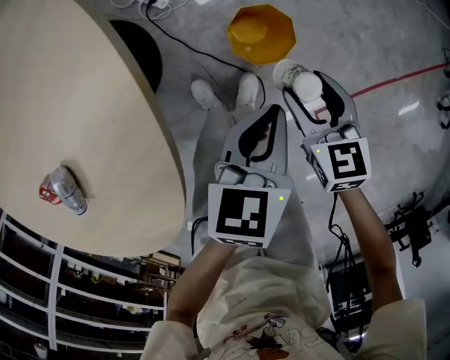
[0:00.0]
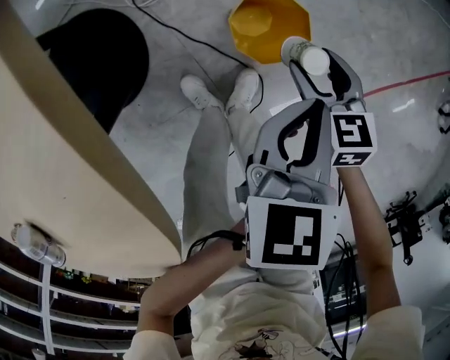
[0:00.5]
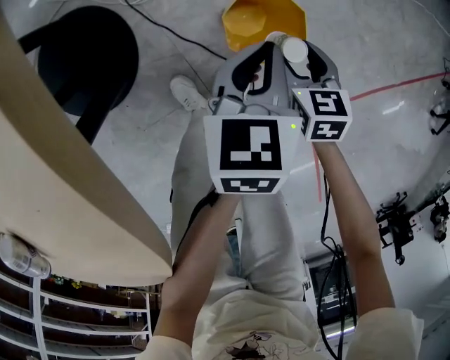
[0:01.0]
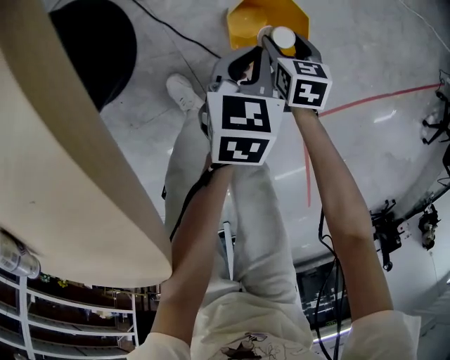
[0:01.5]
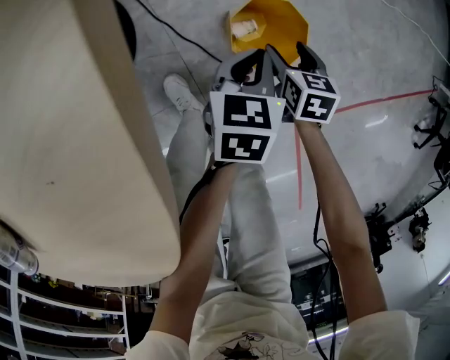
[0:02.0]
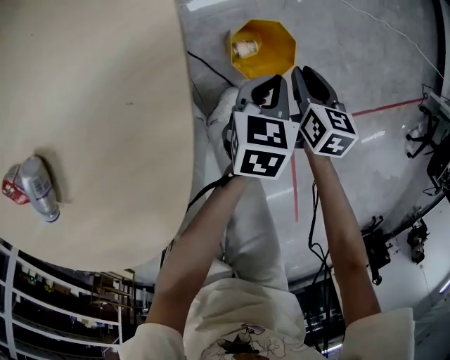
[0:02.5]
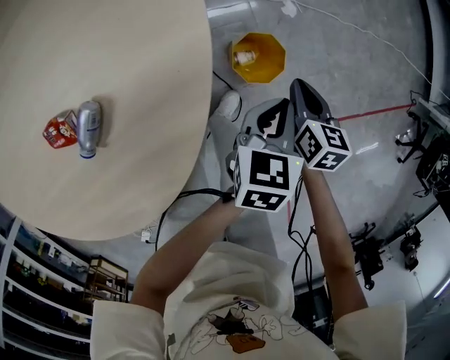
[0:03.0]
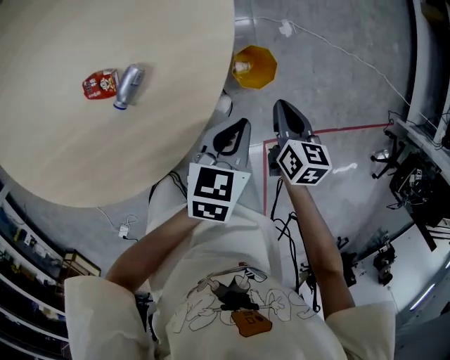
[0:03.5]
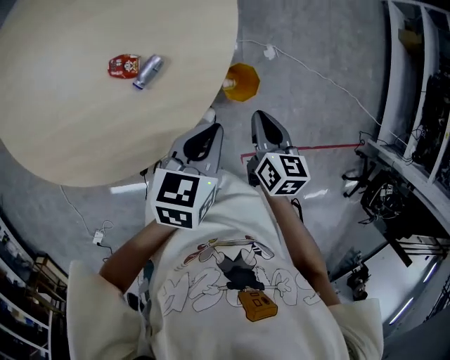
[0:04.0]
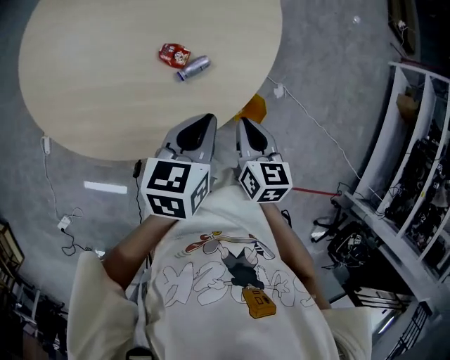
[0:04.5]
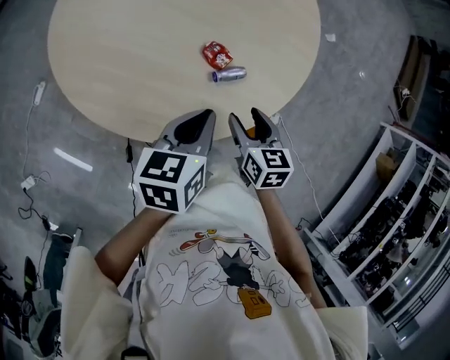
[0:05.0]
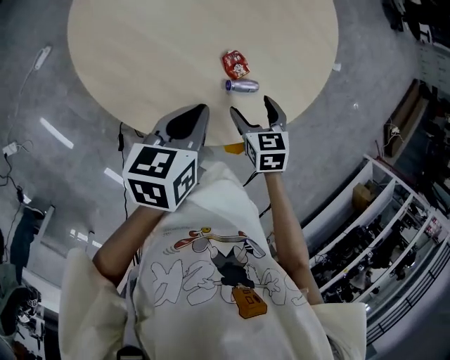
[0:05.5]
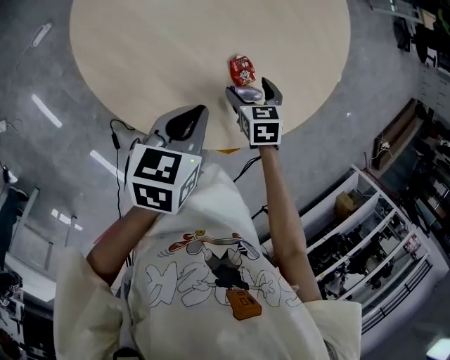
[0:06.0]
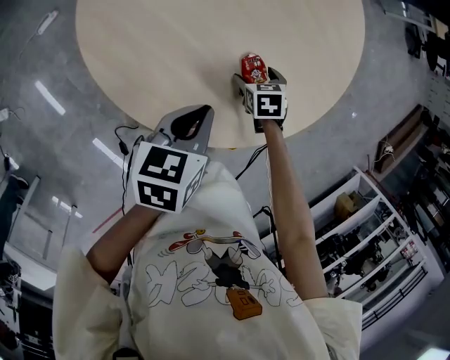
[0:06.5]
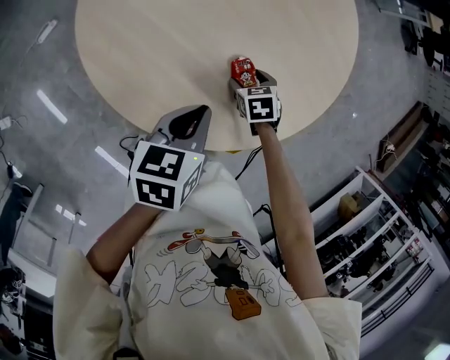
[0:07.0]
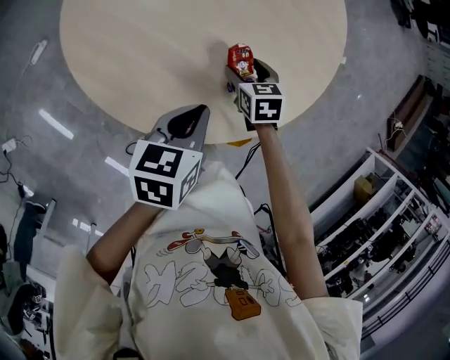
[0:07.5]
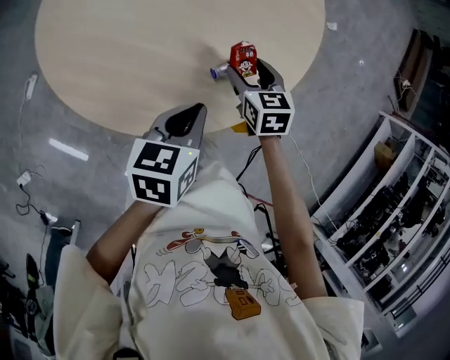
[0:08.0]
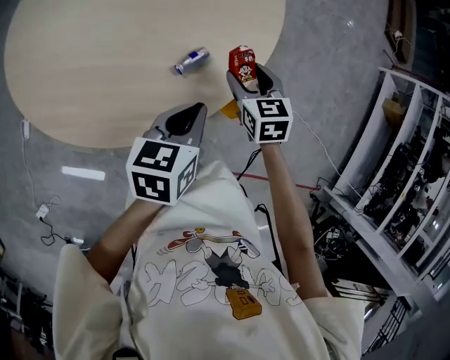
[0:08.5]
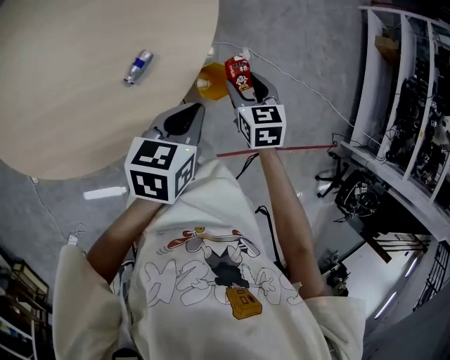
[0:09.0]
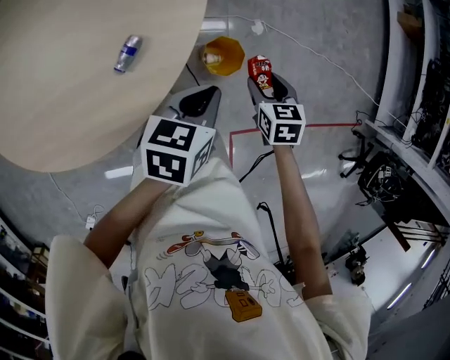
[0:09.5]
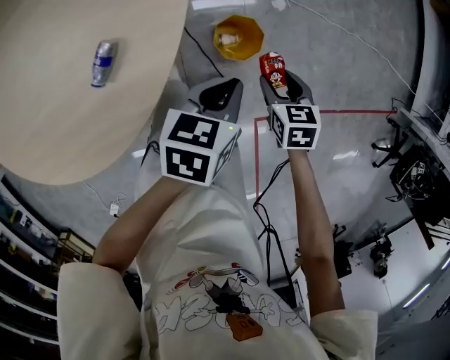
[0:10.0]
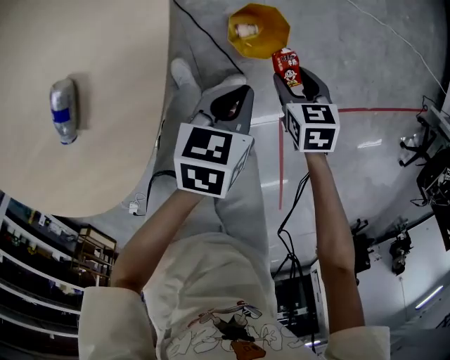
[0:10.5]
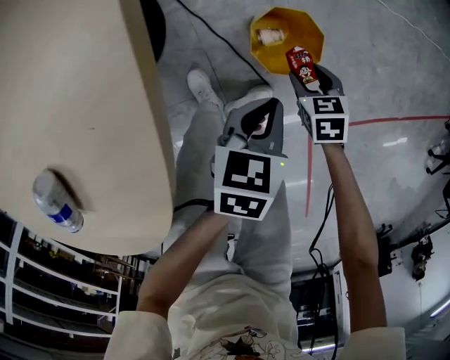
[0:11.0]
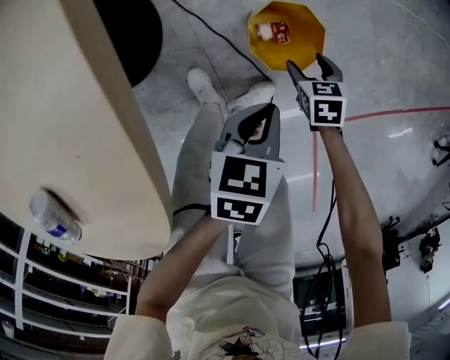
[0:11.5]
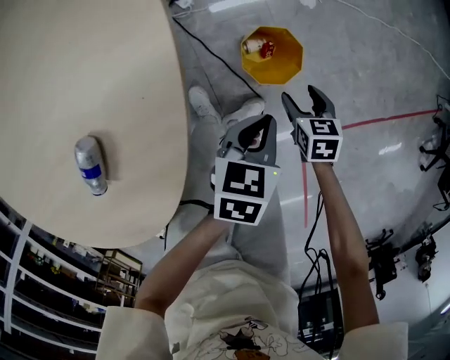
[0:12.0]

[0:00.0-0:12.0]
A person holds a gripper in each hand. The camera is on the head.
0:00.0 to 0:02.0: Both grippers move downward, some 25 cm.
0:02.0 to 0:04.0: Both grippers travel together upward, approximately 50 cm. The right gripper rotates approximately 20 degrees, and closes.
0:04.0 to 0:06.0: The right gripper moves about 35 cm, twists roughly 70 degrees counterclockwise, seen from behind, and opens its fingers. The left gripper shifts by some 25 cm, and changes its angle by approximately 50 degrees.
0:06.0 to 0:08.0: The left gripper moves to the right, approximately 5 cm, and changes its angle by roughly 20 degrees; the right gripper changes place by some 5 cm, and changes its angle by some 20 degrees.
0:08.0 to 0:10.0: The left gripper moves about 35 cm, and swivels about 50 degrees, while the right gripper moves approximately 50 cm, and rotates some 40 degrees.
0:10.0 to 0:12.0: The two grippers go approximately 20 cm downward.

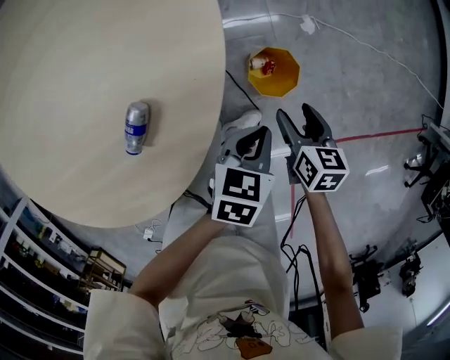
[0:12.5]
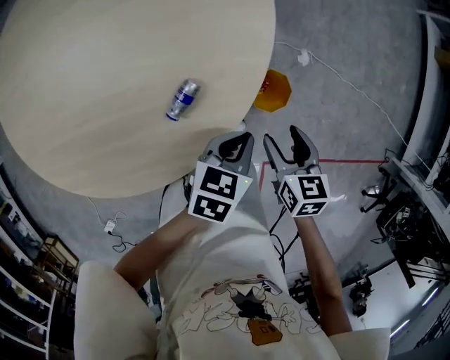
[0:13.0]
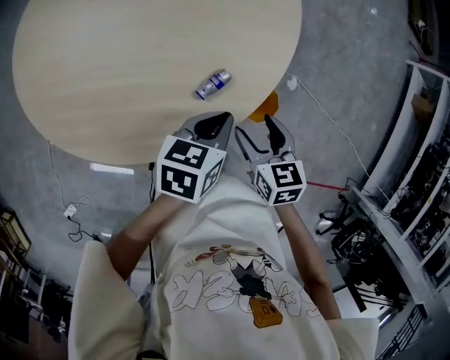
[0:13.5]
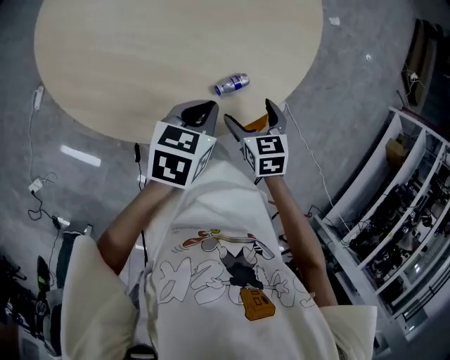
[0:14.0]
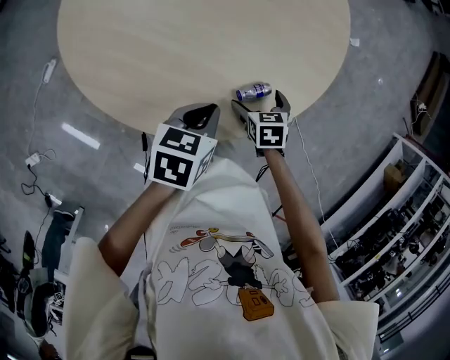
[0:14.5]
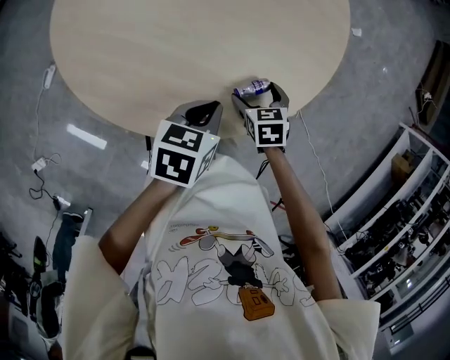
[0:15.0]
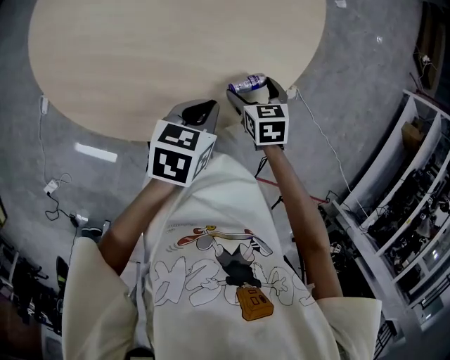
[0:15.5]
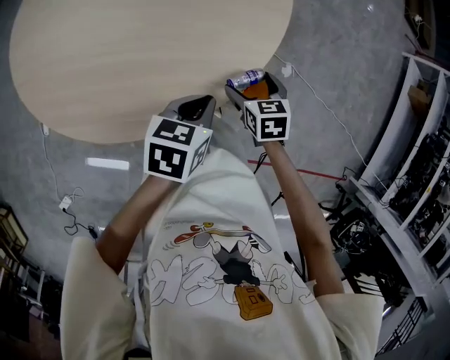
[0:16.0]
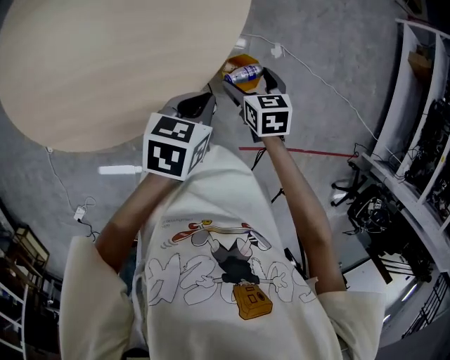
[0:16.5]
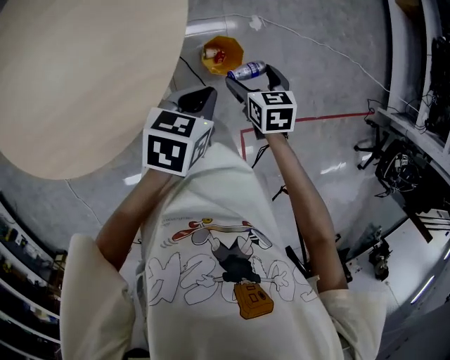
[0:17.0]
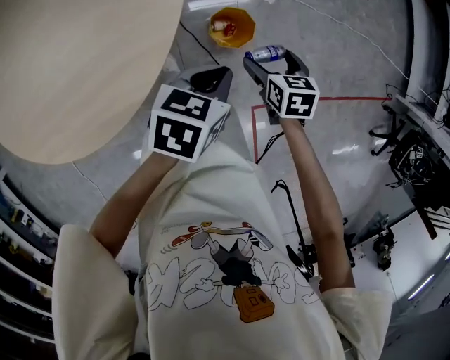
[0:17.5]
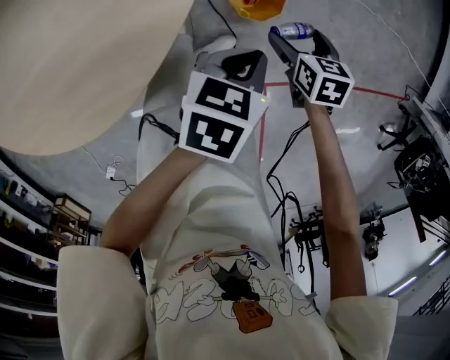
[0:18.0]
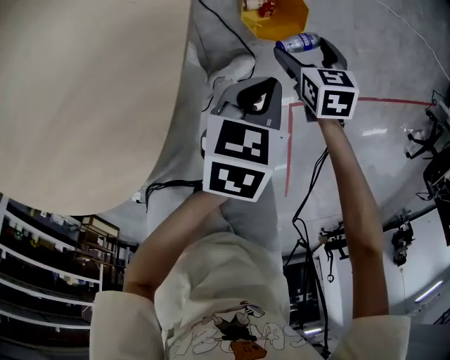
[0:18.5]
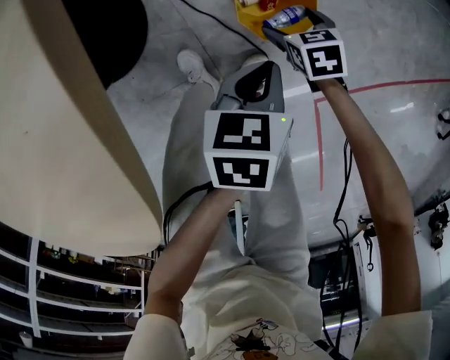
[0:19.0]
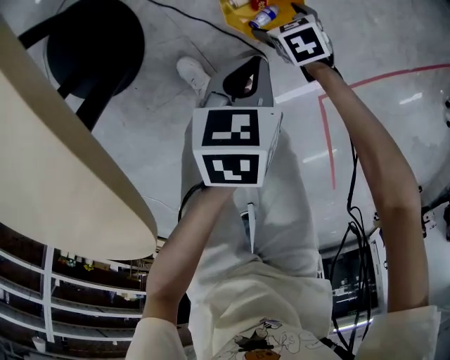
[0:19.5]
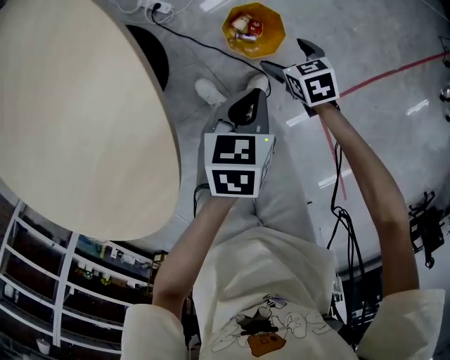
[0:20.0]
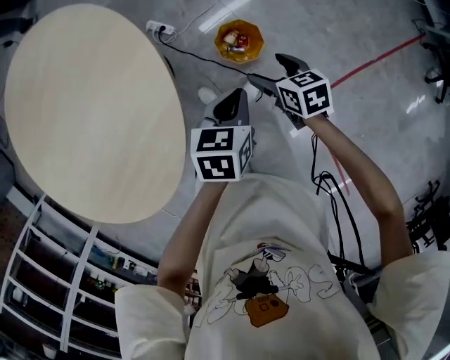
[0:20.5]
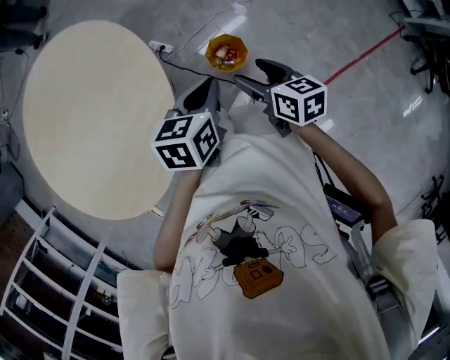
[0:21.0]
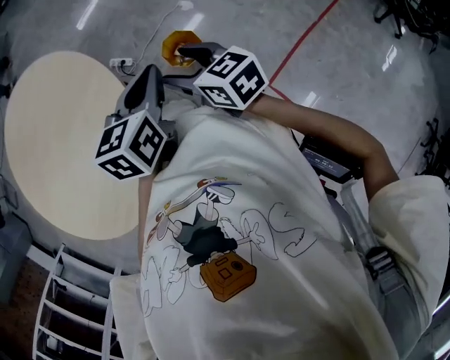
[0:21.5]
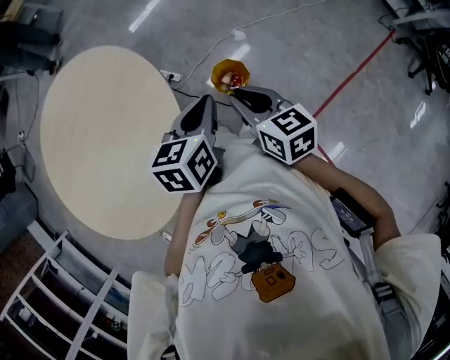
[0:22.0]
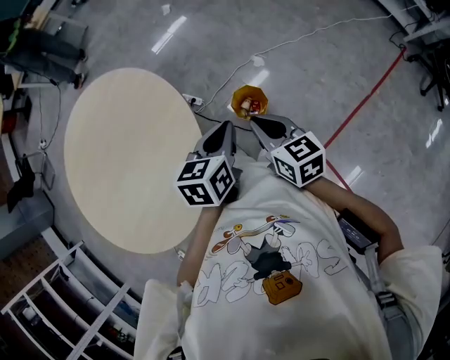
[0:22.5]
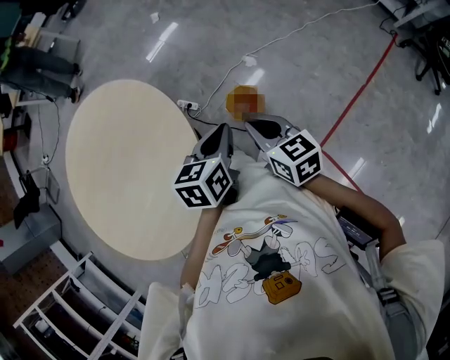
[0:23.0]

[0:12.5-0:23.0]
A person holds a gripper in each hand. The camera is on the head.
0:12.5 to 0:14.5: The right gripper moves roughly 35 cm, rotates around the line of its fingers by approximately 60 degrees, counterclockwise from behind, and opens up. Meanwhile the left gripper moves some 40 cm, and swivels roughly 50 degrees.
0:14.5 to 0:16.5: The right gripper changes place by approximately 20 cm, and turns by approximately 30 degrees; the left gripper moves roughly 20 cm, and turns by approximately 30 degrees.
0:16.5 to 0:19.0: The right gripper heads downward, covering approximately 50 cm, and turns by roughly 20 degrees; the left gripper moves downward and to the right, roughly 40 cm.
0:19.0 to 0:21.0: Both grippers travel together upward, roughly 50 cm. The left gripper rotates approximately 20 degrees, while the right gripper points its fingers approximately 30 degrees further upward.
0:21.0 to 0:23.0: The right gripper heads upward, covering about 5 cm, and closes.

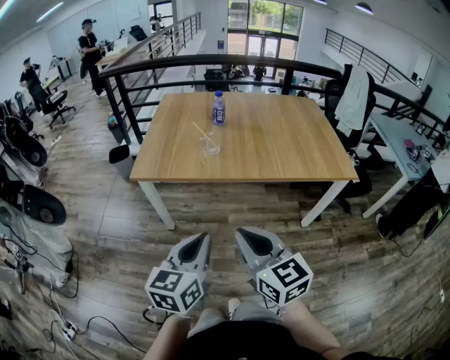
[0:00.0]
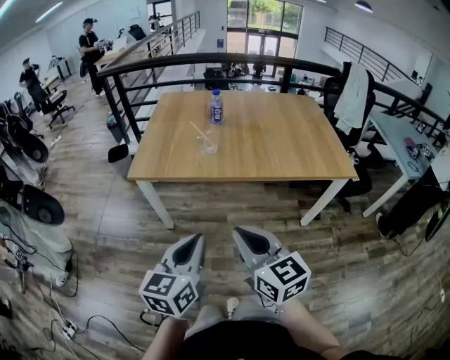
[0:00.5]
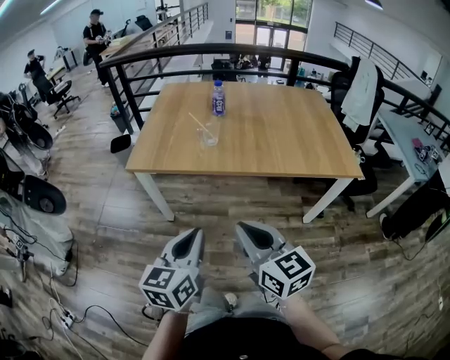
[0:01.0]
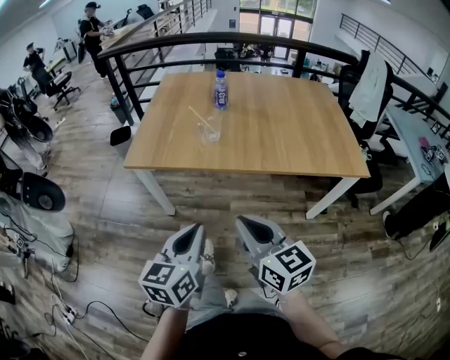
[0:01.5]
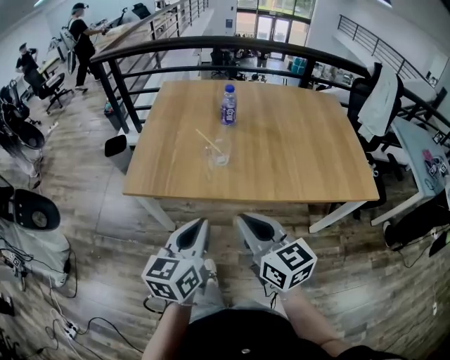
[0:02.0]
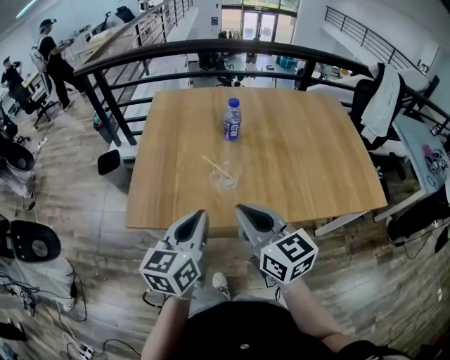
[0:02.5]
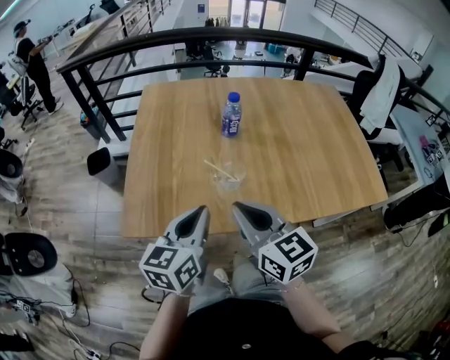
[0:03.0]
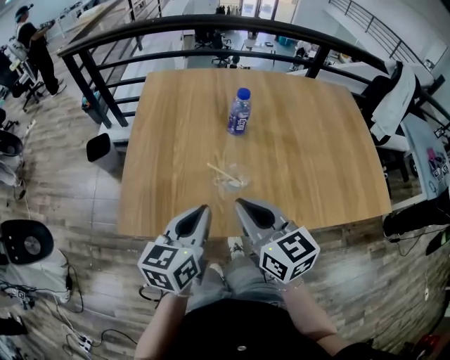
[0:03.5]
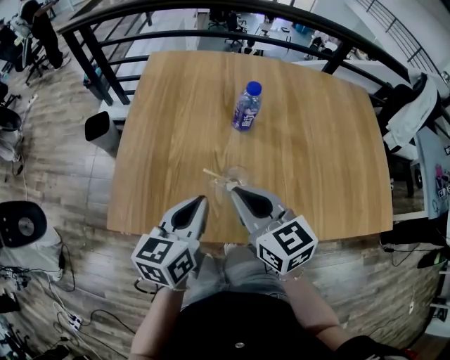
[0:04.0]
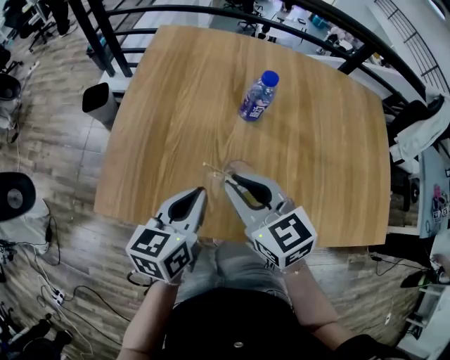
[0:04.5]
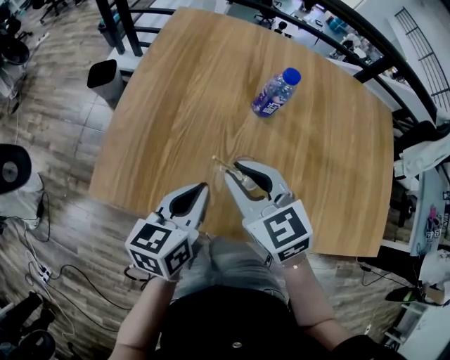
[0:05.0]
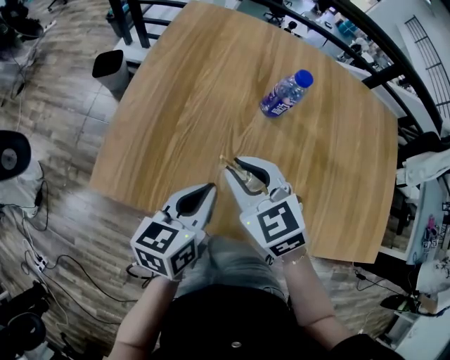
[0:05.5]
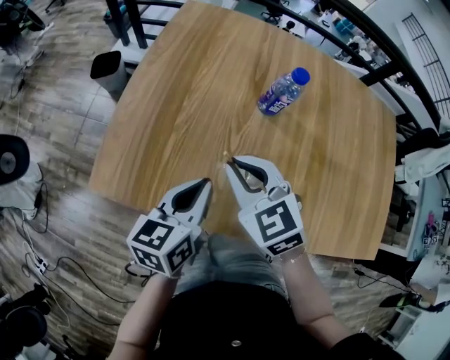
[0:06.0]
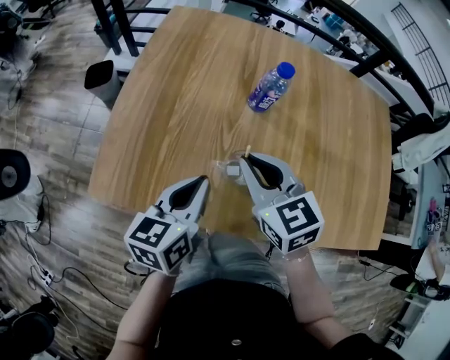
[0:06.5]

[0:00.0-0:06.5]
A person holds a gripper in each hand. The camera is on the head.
0:00.0 to 0:02.0: Both grippers move forward, approximately 25 cm.
0:02.0 to 0:04.5: Both grippers move forward, about 35 cm. The right gripper changes its angle by approximately 20 degrees.
